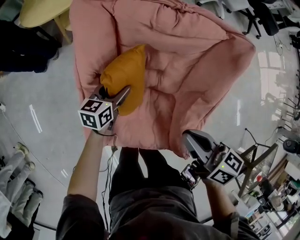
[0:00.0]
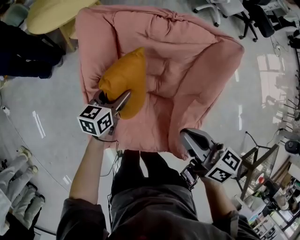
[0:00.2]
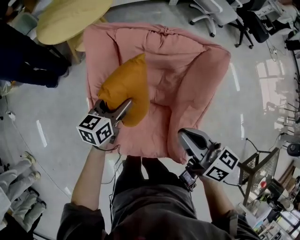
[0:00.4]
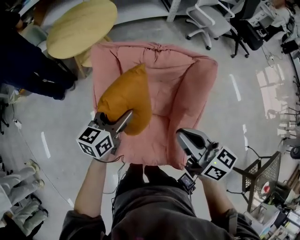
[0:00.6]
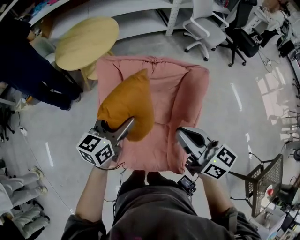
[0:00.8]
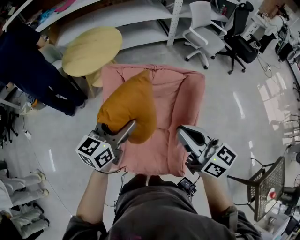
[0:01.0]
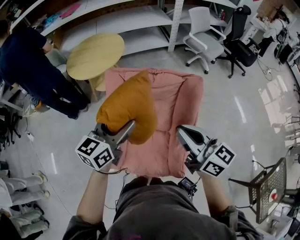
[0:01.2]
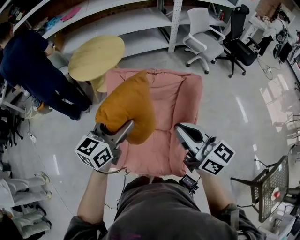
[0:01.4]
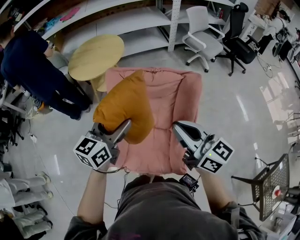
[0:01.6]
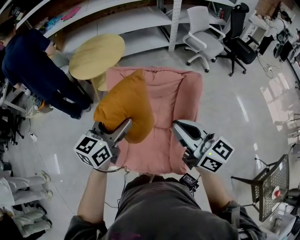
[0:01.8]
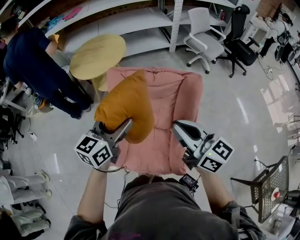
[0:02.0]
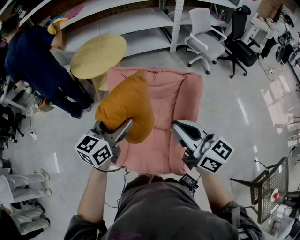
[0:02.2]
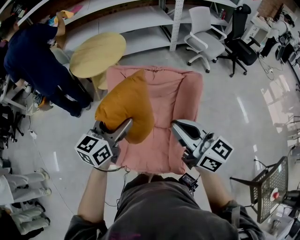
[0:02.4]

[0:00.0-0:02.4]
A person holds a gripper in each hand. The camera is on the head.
0.0 to 1.2 s: The right gripper is displaced upward by roughly 30 cm, and rotates roughly 30 degrees. The left gripper is displaced upward by some 40 cm, and rotates approximately 30 degrees.
1.2 to 2.4 s: The grippers stay close to where they were, moving slightly.

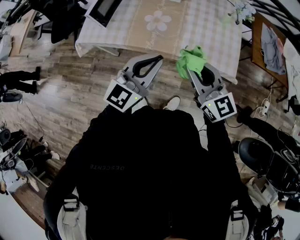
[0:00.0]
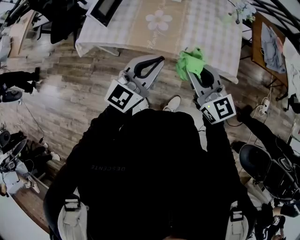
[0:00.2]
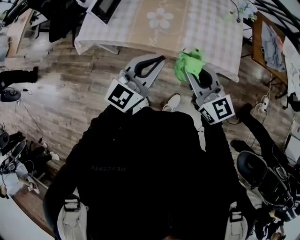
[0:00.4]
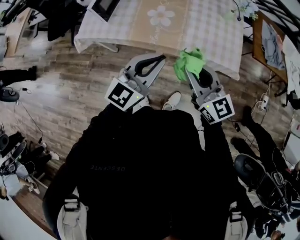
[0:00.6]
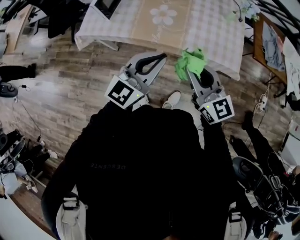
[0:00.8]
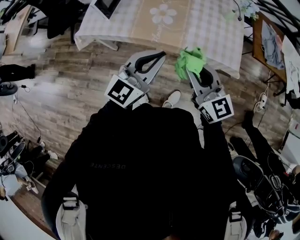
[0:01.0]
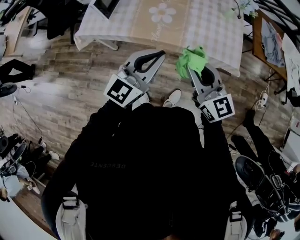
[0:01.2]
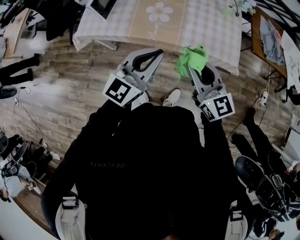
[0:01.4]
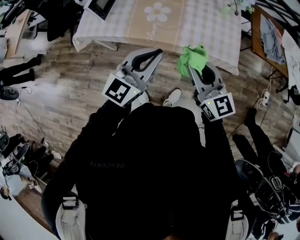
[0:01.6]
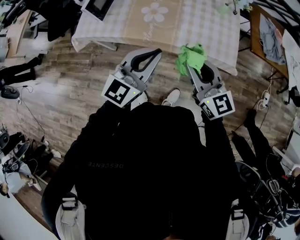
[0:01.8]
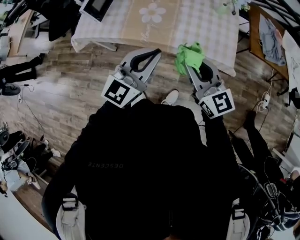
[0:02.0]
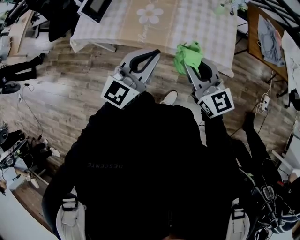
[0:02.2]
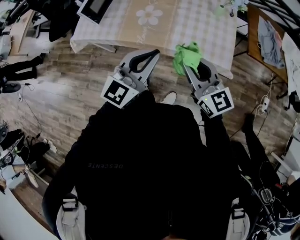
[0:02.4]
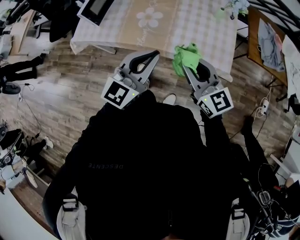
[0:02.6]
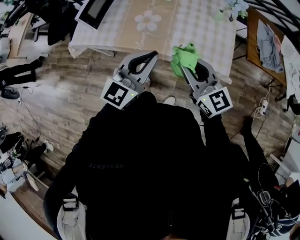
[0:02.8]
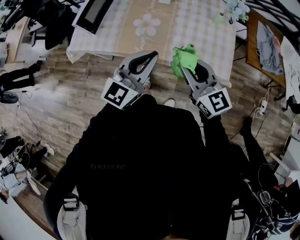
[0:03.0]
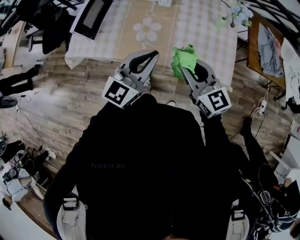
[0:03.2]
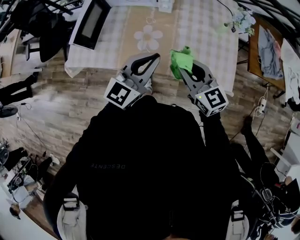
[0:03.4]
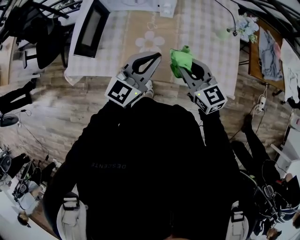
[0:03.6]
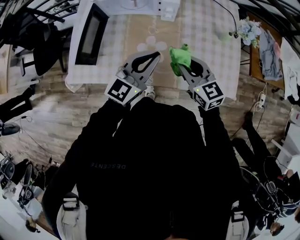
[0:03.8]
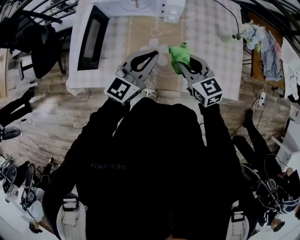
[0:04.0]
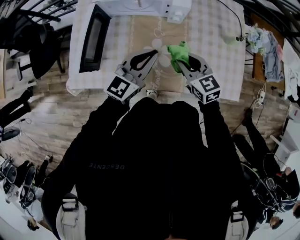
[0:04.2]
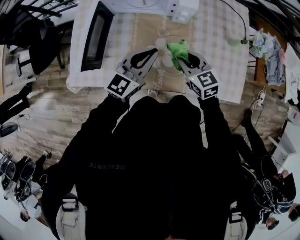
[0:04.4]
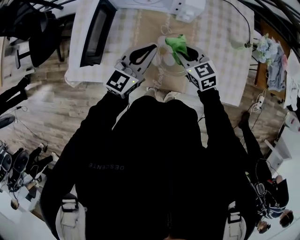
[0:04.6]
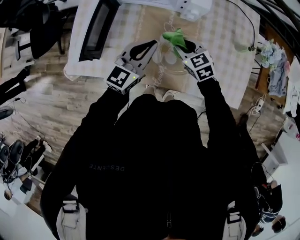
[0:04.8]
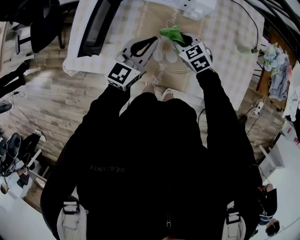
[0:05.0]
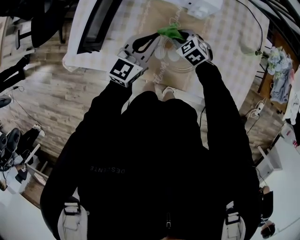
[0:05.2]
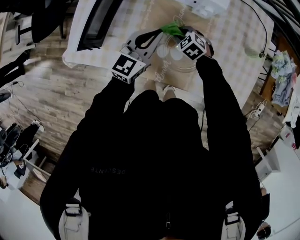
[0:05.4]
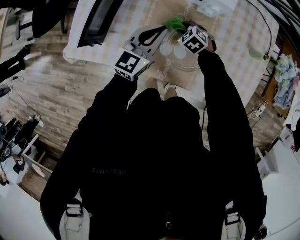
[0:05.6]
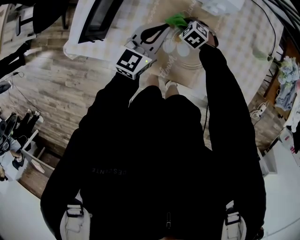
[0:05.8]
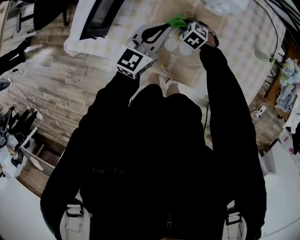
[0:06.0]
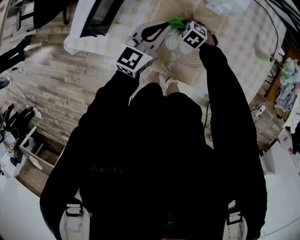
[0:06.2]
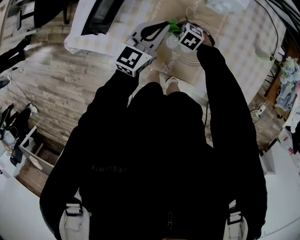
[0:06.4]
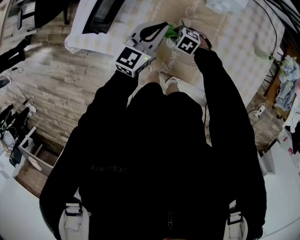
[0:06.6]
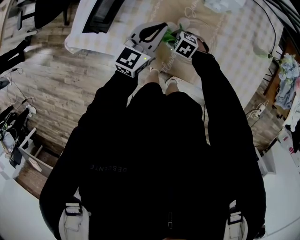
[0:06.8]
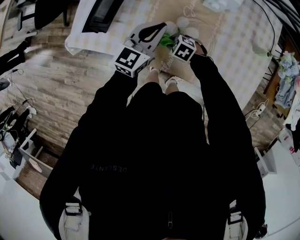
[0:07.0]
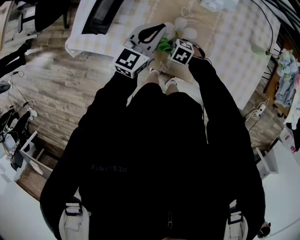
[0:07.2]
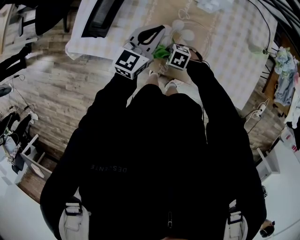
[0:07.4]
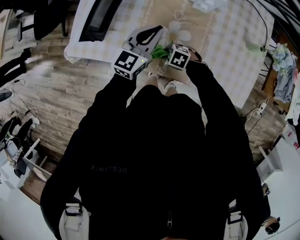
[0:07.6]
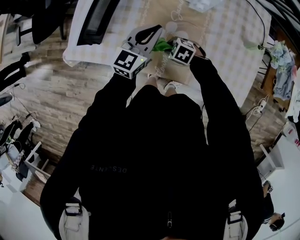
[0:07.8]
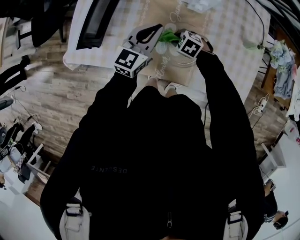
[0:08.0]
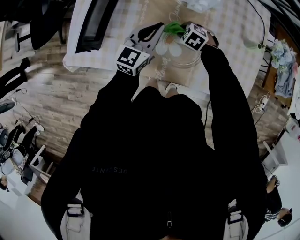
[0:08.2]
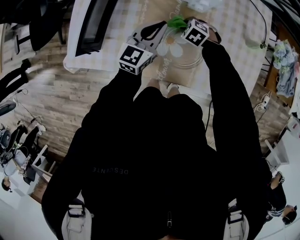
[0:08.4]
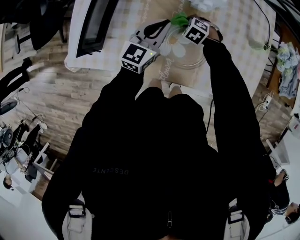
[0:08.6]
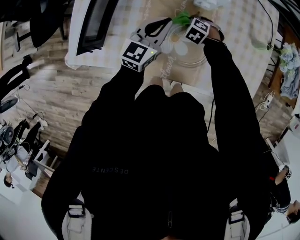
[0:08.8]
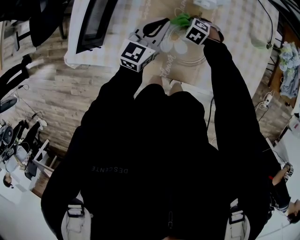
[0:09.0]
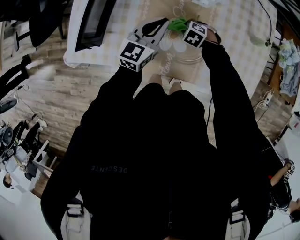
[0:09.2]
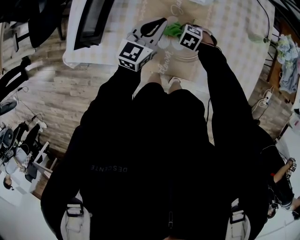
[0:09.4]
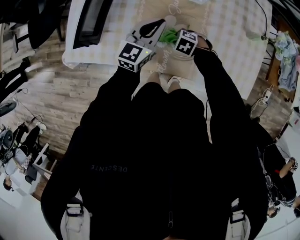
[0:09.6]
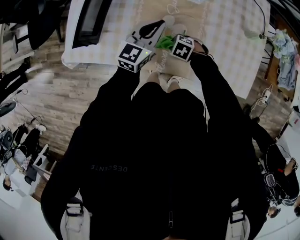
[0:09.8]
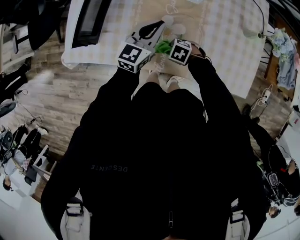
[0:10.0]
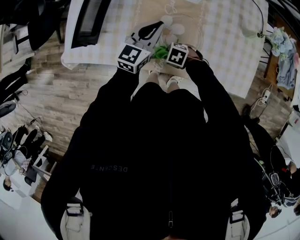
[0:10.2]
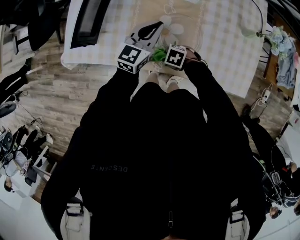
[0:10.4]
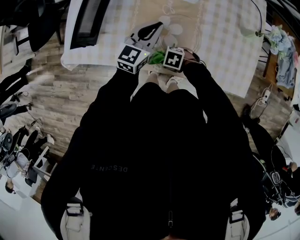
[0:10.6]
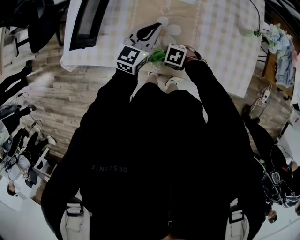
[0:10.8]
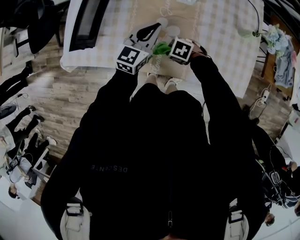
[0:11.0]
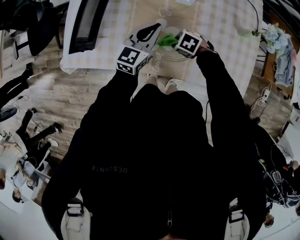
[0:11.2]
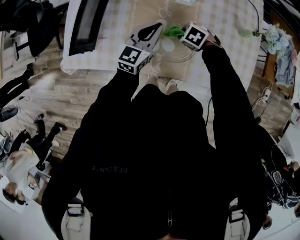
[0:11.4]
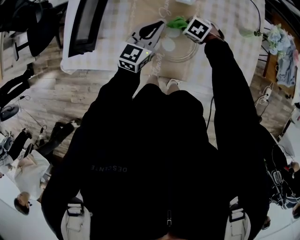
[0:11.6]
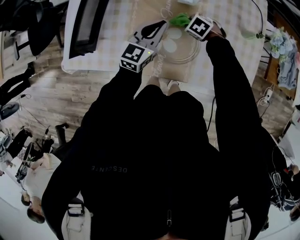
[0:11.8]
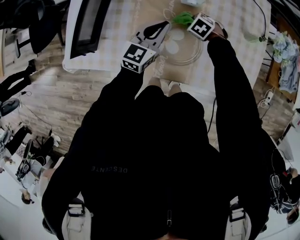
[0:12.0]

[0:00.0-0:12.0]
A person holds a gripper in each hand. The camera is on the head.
1.6 to 3.0 s: The right gripper goes some 10 cm forward, while the left gripper shifts approximately 10 cm forward and to the right.
3.0 to 4.4 s: The left gripper moves forward and to the left, some 35 cm; the right gripper moves forward, to the left and downward, some 35 cm, and rotates about 30 degrees.
4.4 to 6.0 s: The left gripper heads downward, covering about 10 cm. The right gripper travels downward by roughly 25 cm, and tilts its fingers about 40 degrees downward.
6.0 to 7.6 s: The right gripper changes place by some 15 cm, and turns by roughly 20 degrees.
7.6 to 9.0 s: The right gripper shifts by about 20 cm, and swivels about 30 degrees. The left gripper ends up about 5 cm from where it was.
9.0 to 10.4 s: The right gripper ends up some 25 cm from where it was, and changes its angle by some 30 degrees.
10.4 to 12.0 s: The right gripper changes place by some 25 cm, and rotates about 30 degrees.

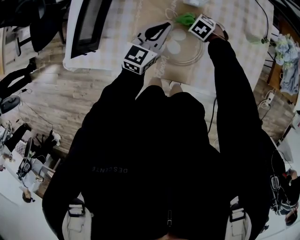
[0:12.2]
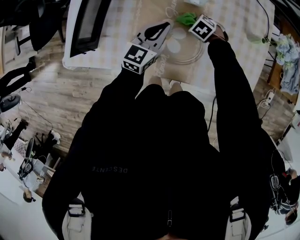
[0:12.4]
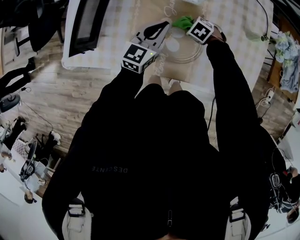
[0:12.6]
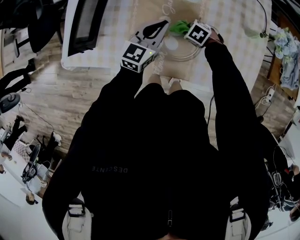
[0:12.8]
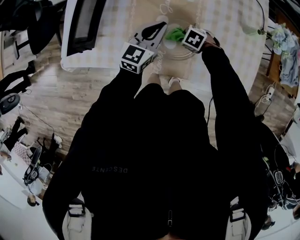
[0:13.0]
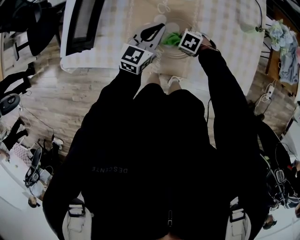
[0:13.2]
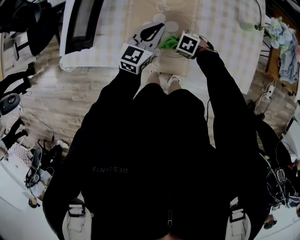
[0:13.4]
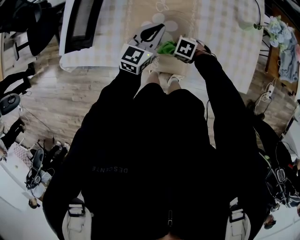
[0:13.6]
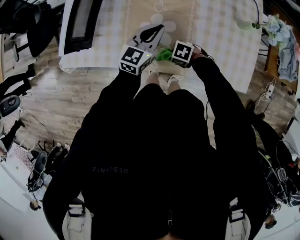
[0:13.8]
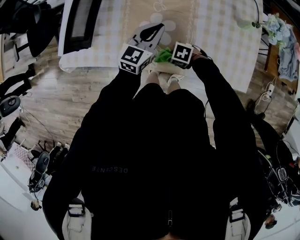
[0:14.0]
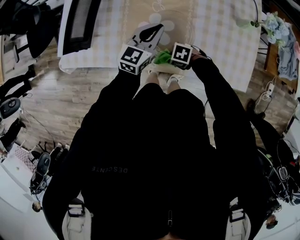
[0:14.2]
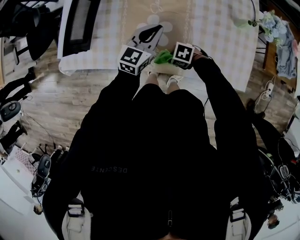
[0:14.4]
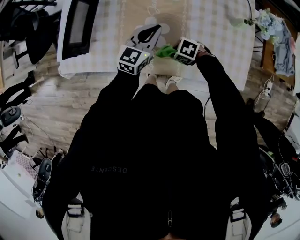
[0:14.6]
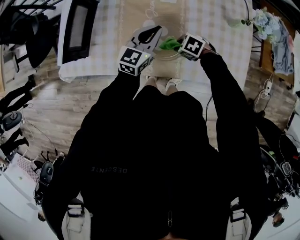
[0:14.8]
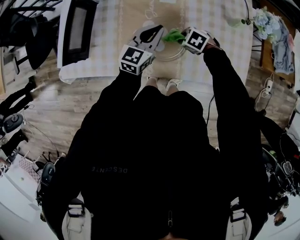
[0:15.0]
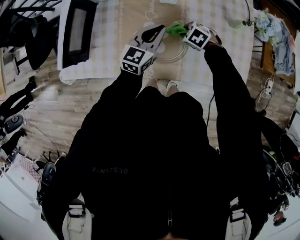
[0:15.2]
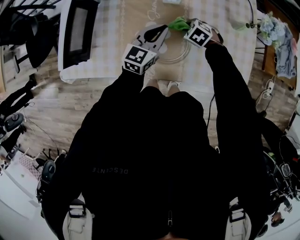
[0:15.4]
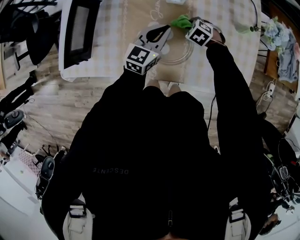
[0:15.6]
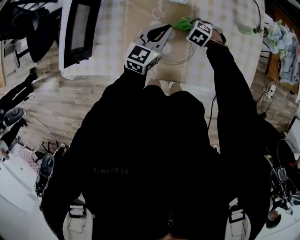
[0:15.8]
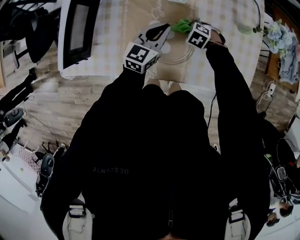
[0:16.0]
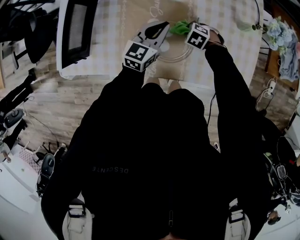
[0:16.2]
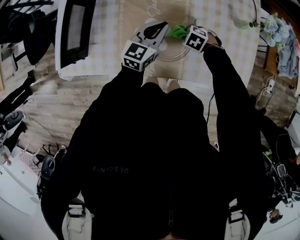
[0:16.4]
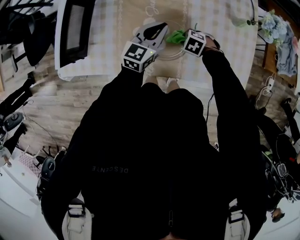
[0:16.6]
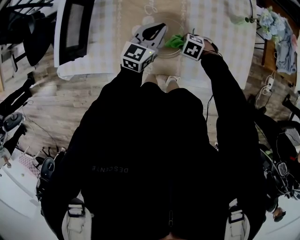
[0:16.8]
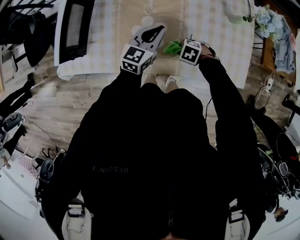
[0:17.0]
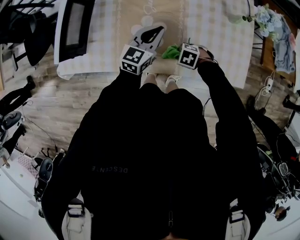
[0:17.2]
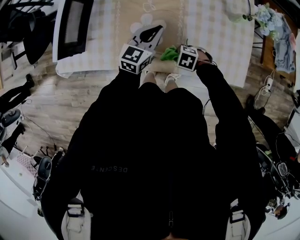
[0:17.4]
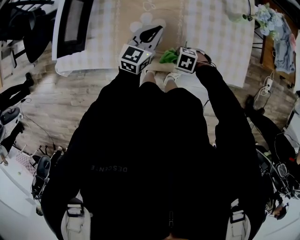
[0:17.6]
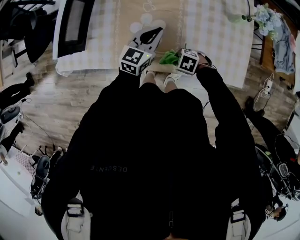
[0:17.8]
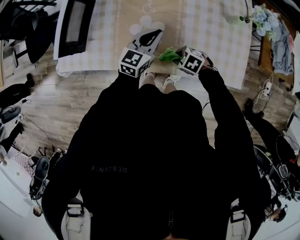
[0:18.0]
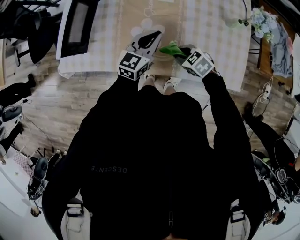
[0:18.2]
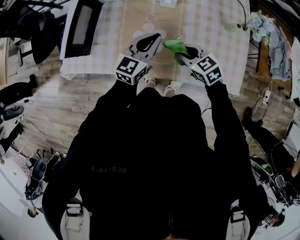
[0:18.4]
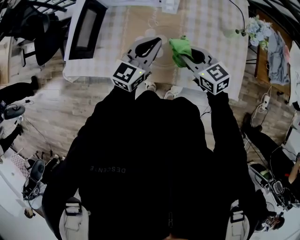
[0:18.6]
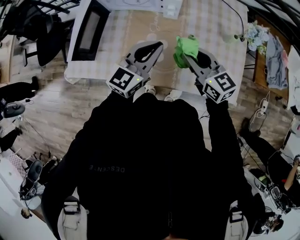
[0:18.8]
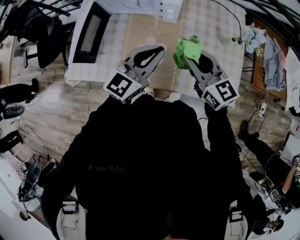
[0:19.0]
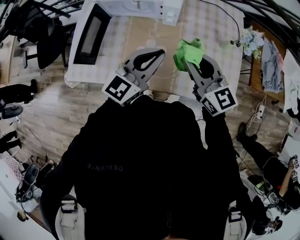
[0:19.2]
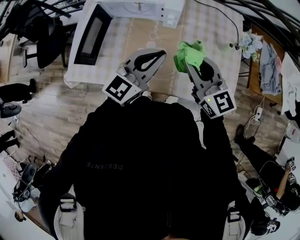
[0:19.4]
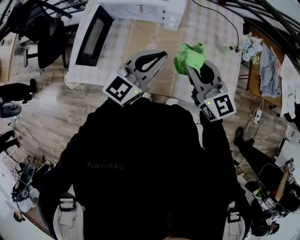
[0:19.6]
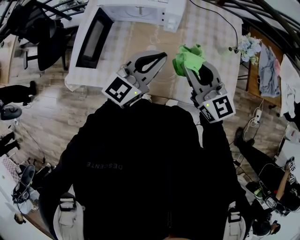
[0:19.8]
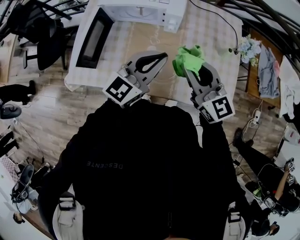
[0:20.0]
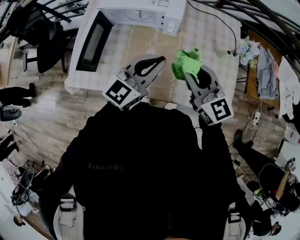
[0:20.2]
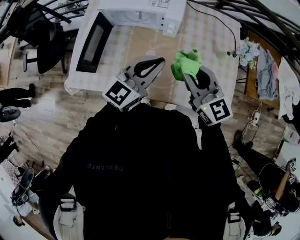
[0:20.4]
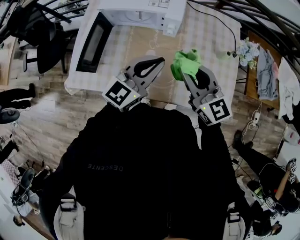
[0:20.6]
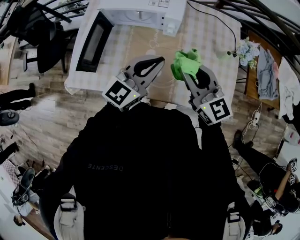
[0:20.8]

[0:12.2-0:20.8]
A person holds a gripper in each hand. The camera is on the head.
12.2 to 13.6 s: The right gripper shifts by some 20 cm, and changes its angle by approximately 30 degrees.
13.6 to 15.0 s: The right gripper shifts by some 15 cm.
16.6 to 18.0 s: The left gripper ends up some 5 cm from where it was. The right gripper moves approximately 10 cm.
18.0 to 19.4 s: The right gripper heads upward, covering some 35 cm, and points its fingers approximately 60 degrees further upward. Meanwhile the left gripper goes about 20 cm upward.
19.4 to 20.8 s: There are only small adjustments of the grippers.

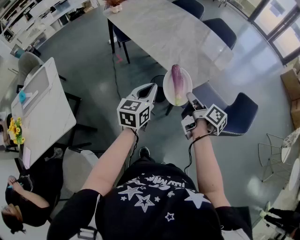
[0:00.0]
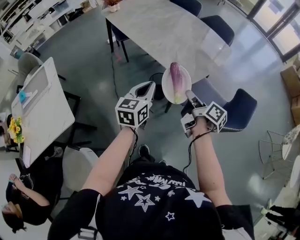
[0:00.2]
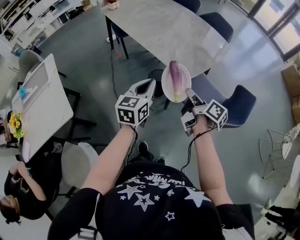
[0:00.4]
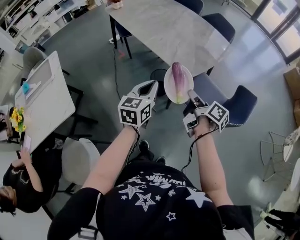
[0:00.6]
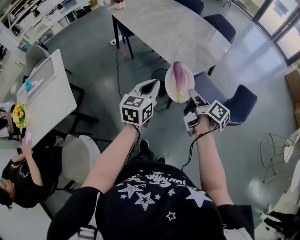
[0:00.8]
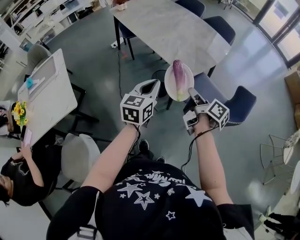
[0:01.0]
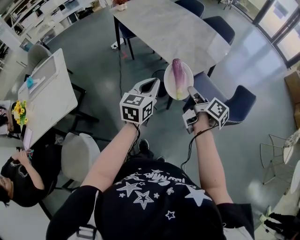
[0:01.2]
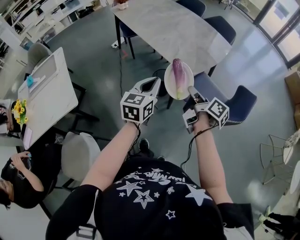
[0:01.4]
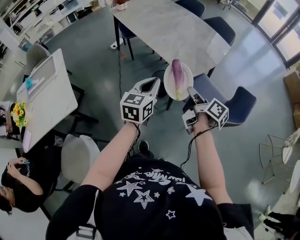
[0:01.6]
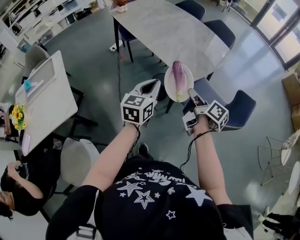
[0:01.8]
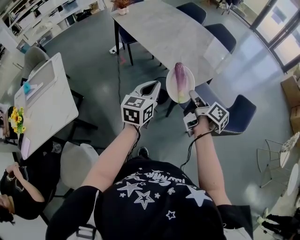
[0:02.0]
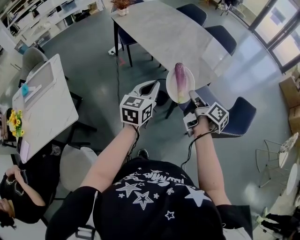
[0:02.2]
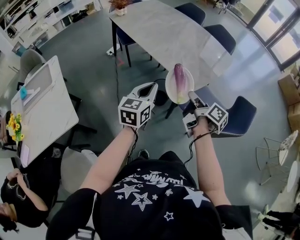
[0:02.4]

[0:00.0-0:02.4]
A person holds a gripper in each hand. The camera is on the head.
0.0 to 1.2 s: The left gripper shifts by about 5 cm.
1.2 to 2.4 s: The left gripper shifts by approximately 5 cm.
